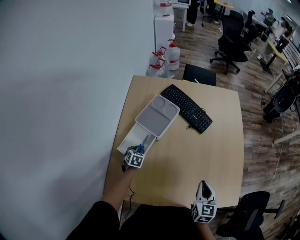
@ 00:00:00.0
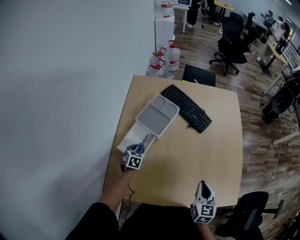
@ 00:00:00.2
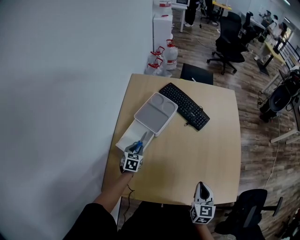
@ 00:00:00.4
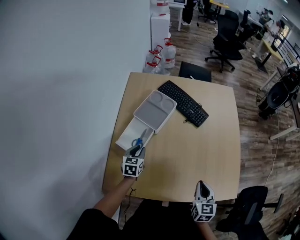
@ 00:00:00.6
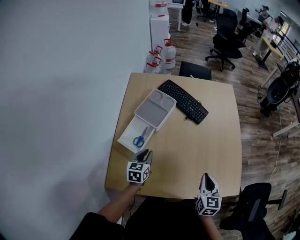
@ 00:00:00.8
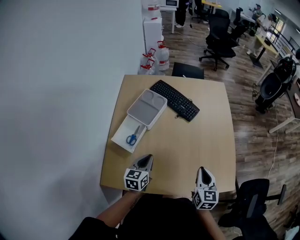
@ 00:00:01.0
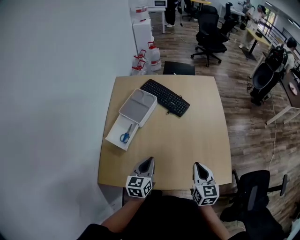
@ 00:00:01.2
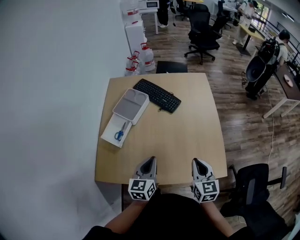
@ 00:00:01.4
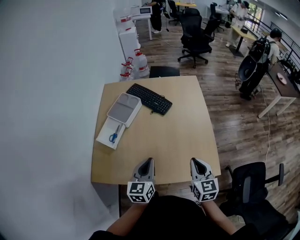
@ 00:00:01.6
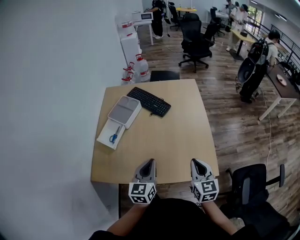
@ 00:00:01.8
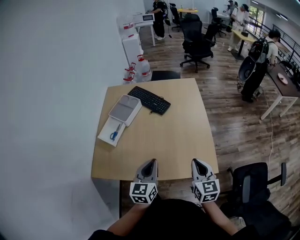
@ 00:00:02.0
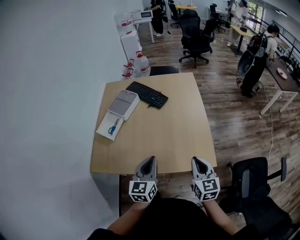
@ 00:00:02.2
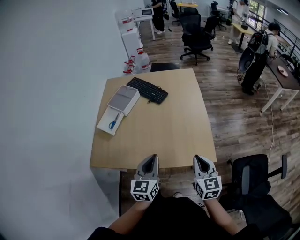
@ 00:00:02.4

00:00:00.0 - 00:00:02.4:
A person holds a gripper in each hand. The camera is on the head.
00:00:00.0 - 00:00:01.2: The right gripper goes roughly 10 cm to the right, upward and backward; the left gripper is displaced upward, to the right and backward by some 35 cm, and tilts its fingers about 40 degrees upward.
00:00:01.2 - 00:00:02.4: The right gripper is displaced to the right and backward by about 20 cm, while the left gripper heads to the right, backward and upward, covering roughly 25 cm.

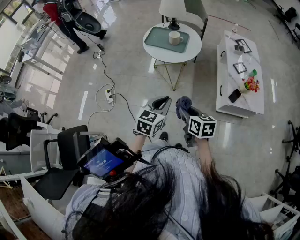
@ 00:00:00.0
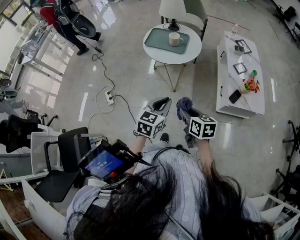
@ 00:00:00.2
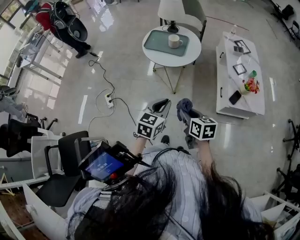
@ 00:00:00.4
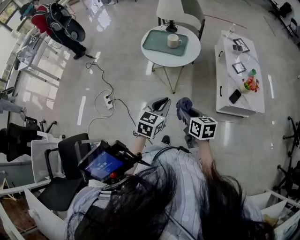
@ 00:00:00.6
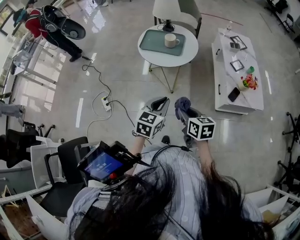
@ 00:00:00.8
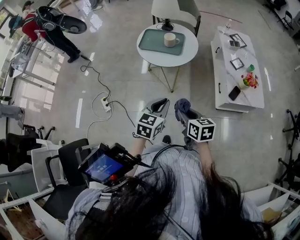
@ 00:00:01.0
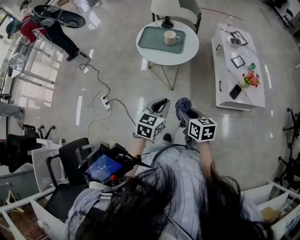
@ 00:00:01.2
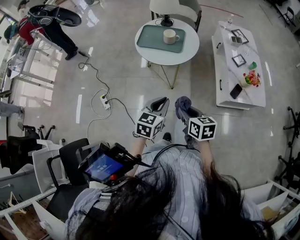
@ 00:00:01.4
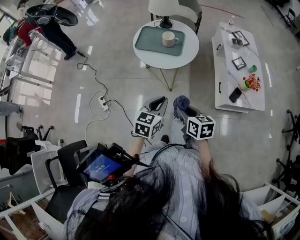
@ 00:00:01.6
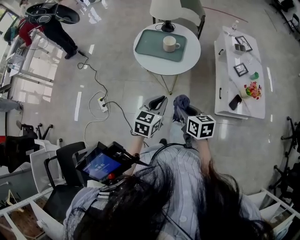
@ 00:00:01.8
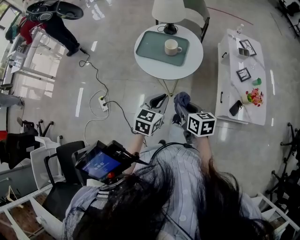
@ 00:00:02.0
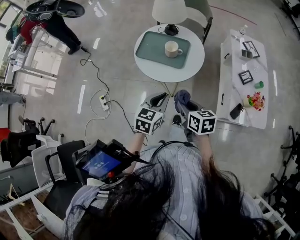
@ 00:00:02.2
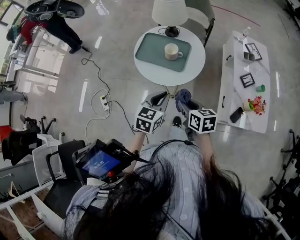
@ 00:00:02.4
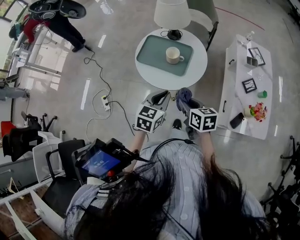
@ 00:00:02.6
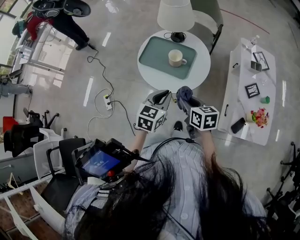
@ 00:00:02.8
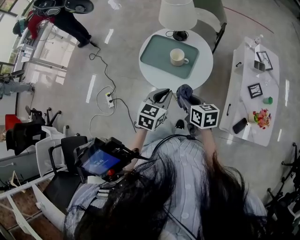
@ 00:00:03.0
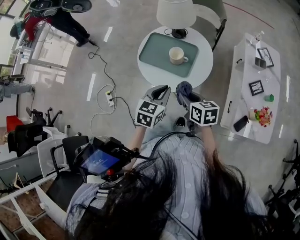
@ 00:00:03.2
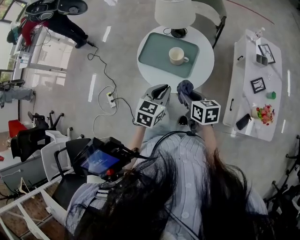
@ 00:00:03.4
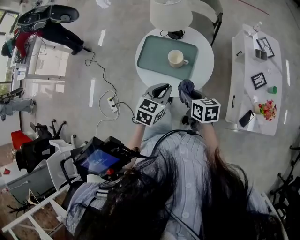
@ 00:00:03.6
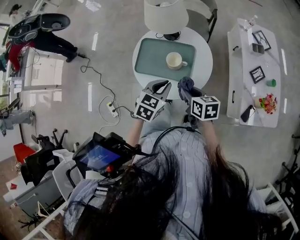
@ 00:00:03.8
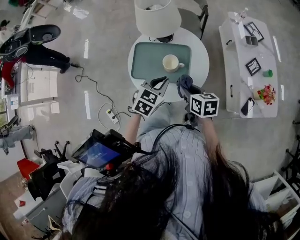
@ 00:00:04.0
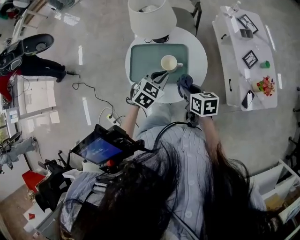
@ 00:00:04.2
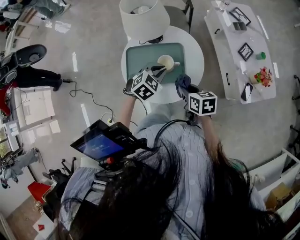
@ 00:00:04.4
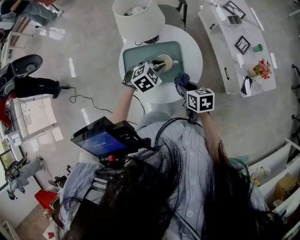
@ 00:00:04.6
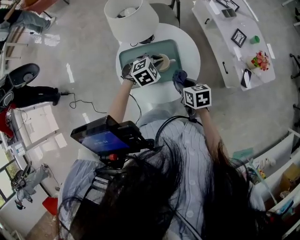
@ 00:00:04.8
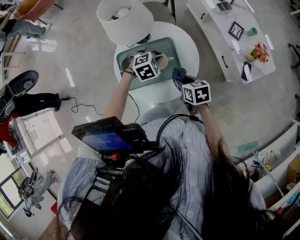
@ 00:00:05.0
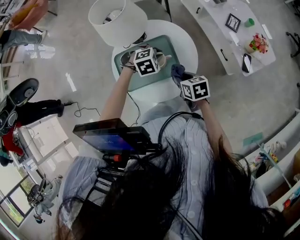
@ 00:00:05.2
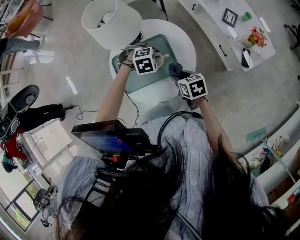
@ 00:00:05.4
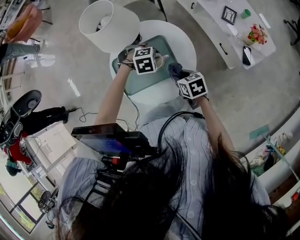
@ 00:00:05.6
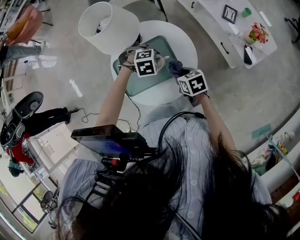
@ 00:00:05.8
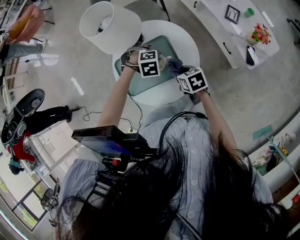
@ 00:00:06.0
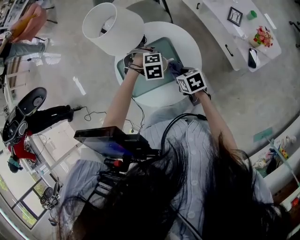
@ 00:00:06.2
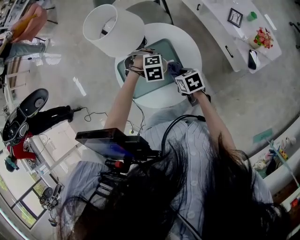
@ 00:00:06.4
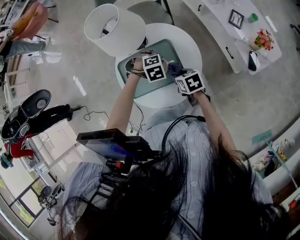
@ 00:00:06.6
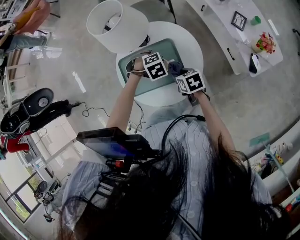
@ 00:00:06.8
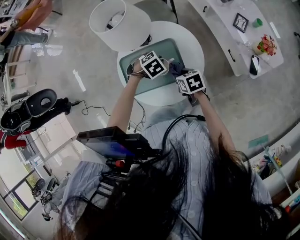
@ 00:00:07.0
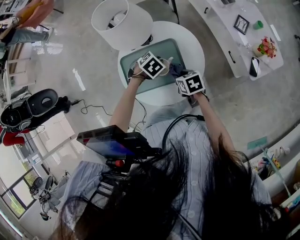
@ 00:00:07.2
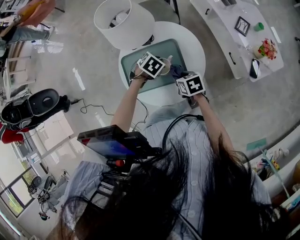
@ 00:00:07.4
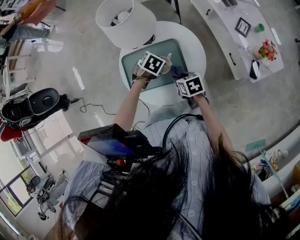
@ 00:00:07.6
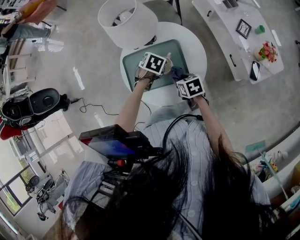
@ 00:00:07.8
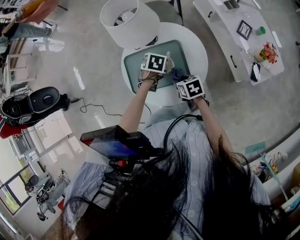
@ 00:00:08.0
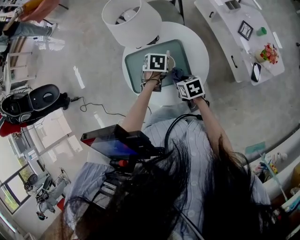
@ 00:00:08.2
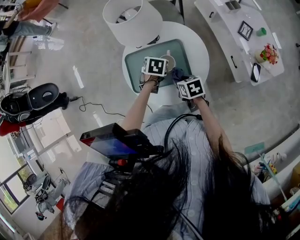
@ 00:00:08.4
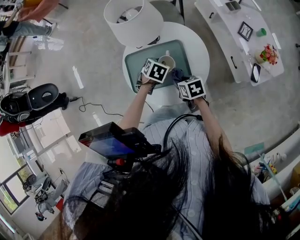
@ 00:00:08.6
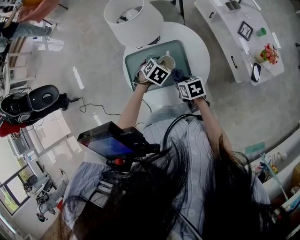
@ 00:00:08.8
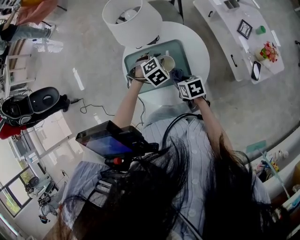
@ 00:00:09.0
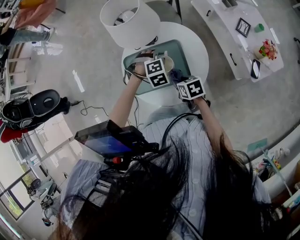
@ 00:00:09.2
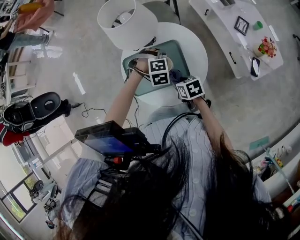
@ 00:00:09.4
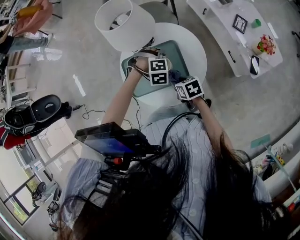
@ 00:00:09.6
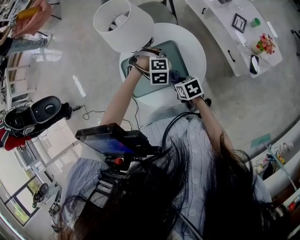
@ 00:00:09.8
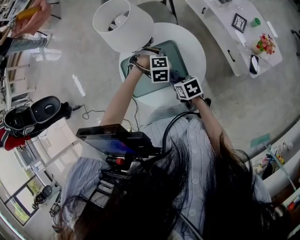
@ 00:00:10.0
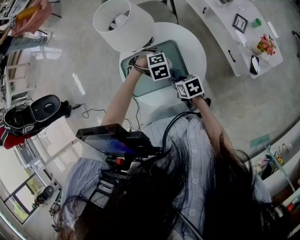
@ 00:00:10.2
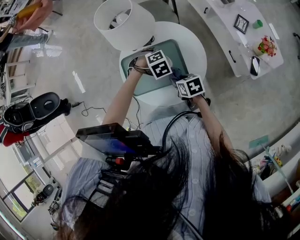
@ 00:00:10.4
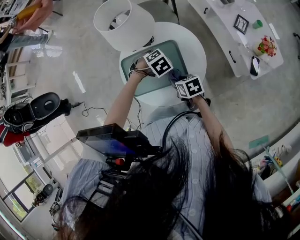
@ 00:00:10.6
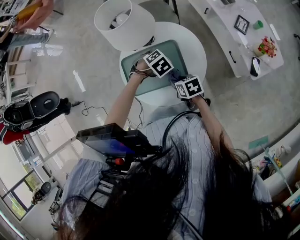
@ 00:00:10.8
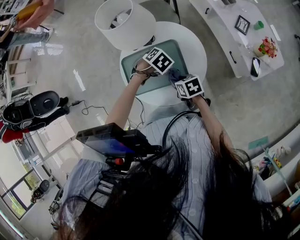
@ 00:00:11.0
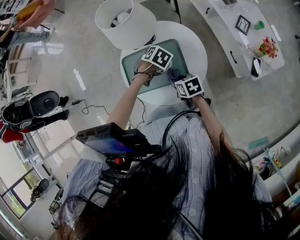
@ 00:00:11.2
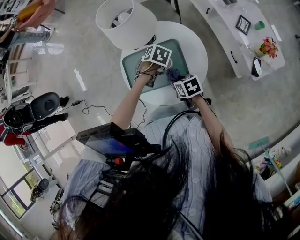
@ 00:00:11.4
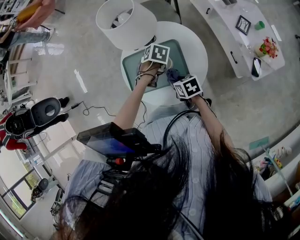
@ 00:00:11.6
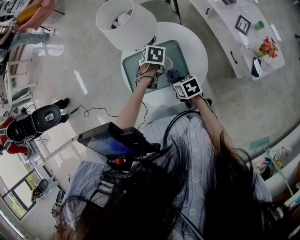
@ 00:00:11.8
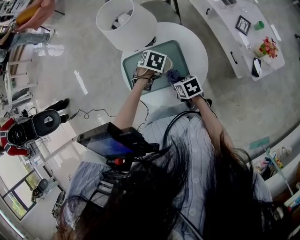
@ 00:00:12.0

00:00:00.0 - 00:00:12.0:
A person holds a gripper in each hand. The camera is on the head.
00:00:00.0 - 00:00:01.6: Both grippers travel together forward, roughly 10 cm.
00:00:01.6 - 00:00:03.0: The grippers both shift forward by approximately 25 cm.
00:00:03.0 - 00:00:04.4: The right gripper changes place by some 10 cm, and changes its angle by some 30 degrees. The left gripper changes place by roughly 20 cm, and rotates some 60 degrees.
00:00:04.4 - 00:00:06.0: The two grippers go some 10 cm downward. The left gripper tips its fingers downward by some 30 degrees.
00:00:06.0 - 00:00:07.6: The left gripper rotates around the line of its fingers by about 60 degrees, counterclockwise from behind.
00:00:07.6 - 00:00:09.0: The left gripper turns by about 30 degrees.
00:00:10.4 - 00:00:12.0: The left gripper rotates around the line of its fingers by about 50 degrees, counterclockwise from behind.

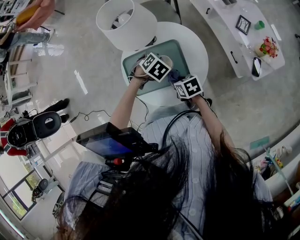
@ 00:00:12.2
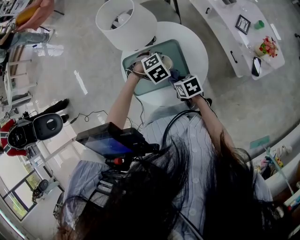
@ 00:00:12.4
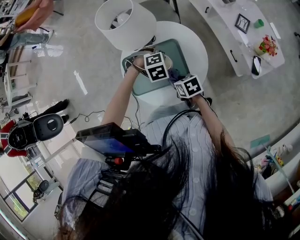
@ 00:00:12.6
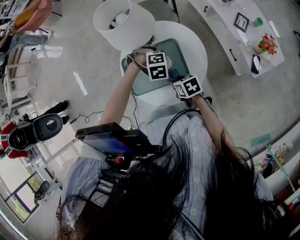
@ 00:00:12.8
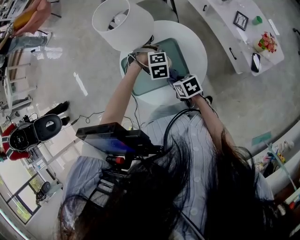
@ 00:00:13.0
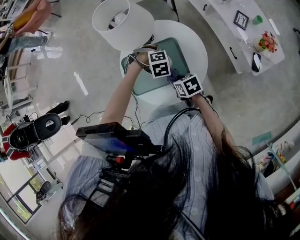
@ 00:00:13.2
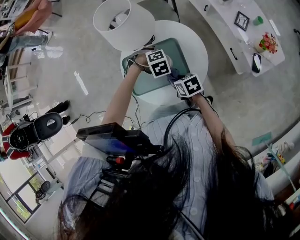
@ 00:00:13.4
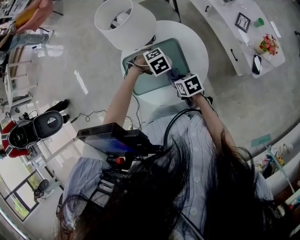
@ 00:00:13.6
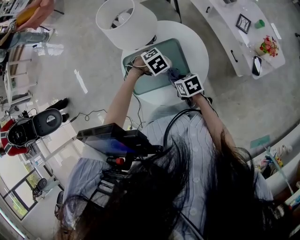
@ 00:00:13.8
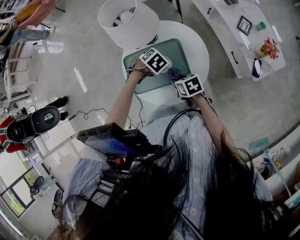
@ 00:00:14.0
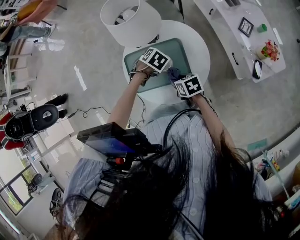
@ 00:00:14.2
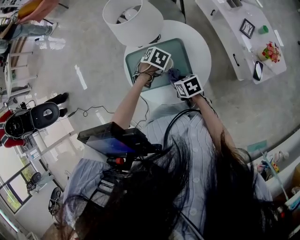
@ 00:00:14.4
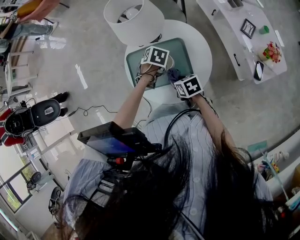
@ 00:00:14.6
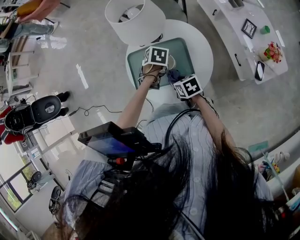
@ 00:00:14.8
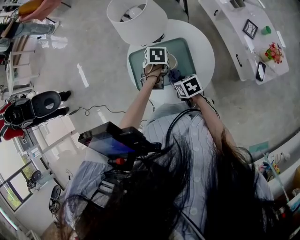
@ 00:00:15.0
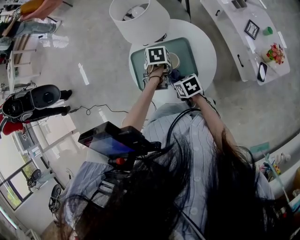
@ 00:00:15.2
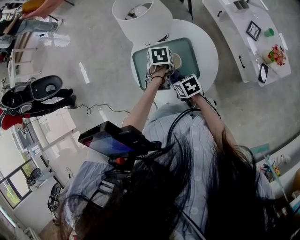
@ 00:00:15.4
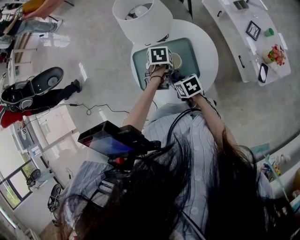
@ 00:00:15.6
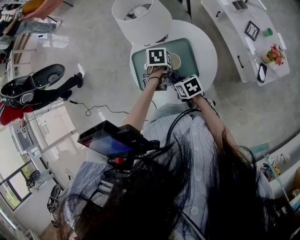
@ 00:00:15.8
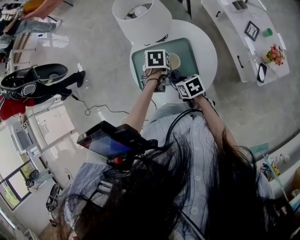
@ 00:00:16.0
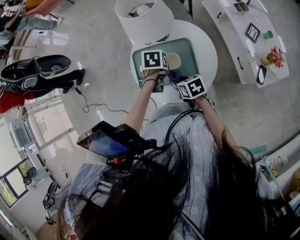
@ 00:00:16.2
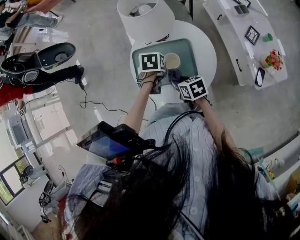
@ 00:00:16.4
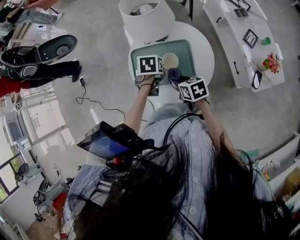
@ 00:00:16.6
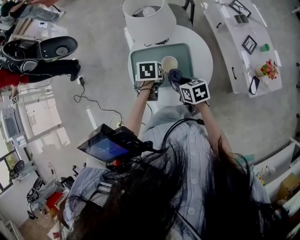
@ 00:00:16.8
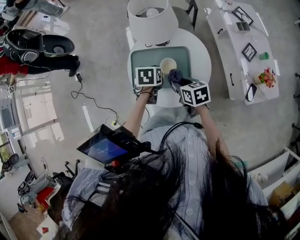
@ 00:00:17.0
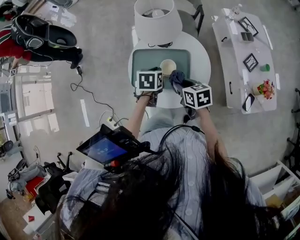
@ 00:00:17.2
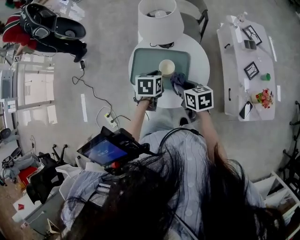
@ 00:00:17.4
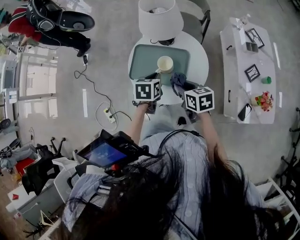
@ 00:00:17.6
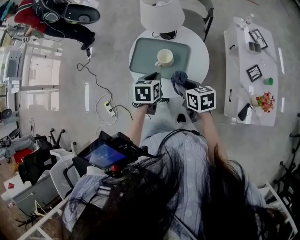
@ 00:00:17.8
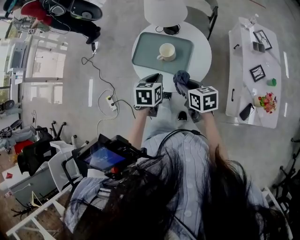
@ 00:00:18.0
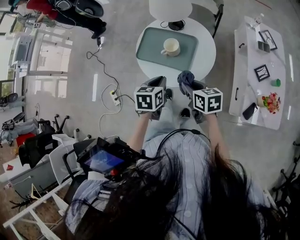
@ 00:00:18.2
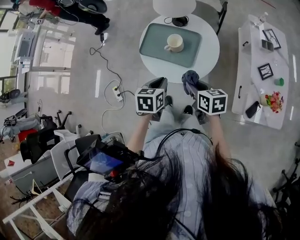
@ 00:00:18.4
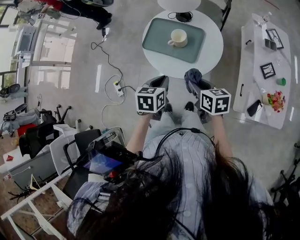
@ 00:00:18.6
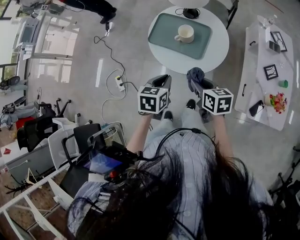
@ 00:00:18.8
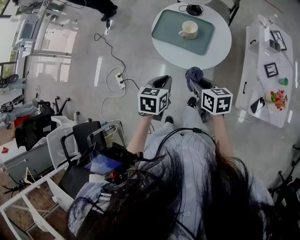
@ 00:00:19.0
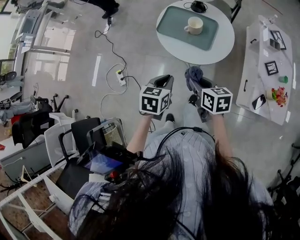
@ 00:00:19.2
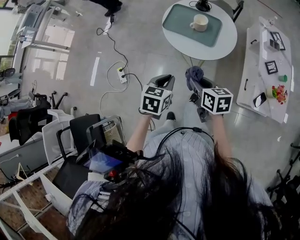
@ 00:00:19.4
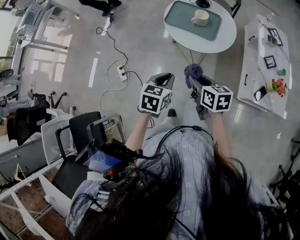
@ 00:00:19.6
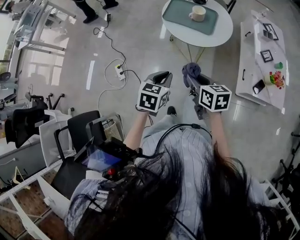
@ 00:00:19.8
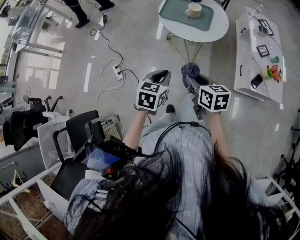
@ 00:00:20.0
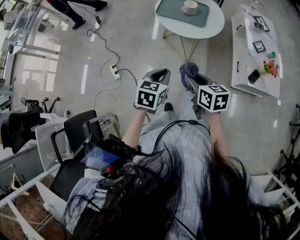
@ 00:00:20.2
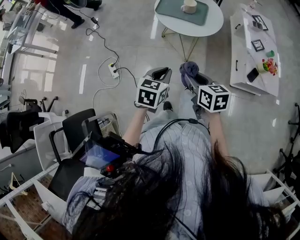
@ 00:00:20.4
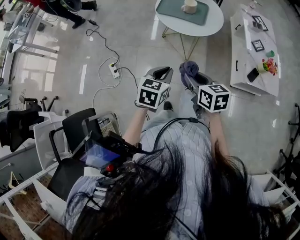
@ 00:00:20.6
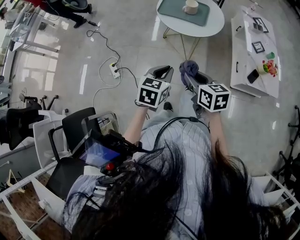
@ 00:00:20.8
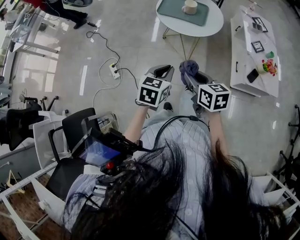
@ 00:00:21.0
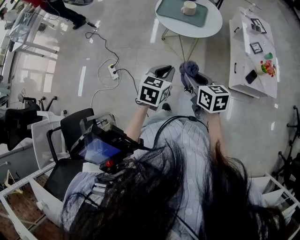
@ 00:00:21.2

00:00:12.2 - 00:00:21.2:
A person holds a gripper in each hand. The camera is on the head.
00:00:13.8 - 00:00:15.2: The left gripper rolls counterclockwise, seen from behind, by some 70 degrees.
00:00:15.2 - 00:00:16.6: The grippers stay close to where they were, moving slightly.
00:00:16.6 - 00:00:18.2: The left gripper moves backward and upward, some 25 cm, and swivels about 30 degrees; the right gripper moves backward, upward and to the right, roughly 15 cm.
00:00:18.2 - 00:00:19.8: Both grippers travel together backward and to the left, some 30 cm.
00:00:19.8 - 00:00:21.2: The two grippers go roughly 5 cm backward.
